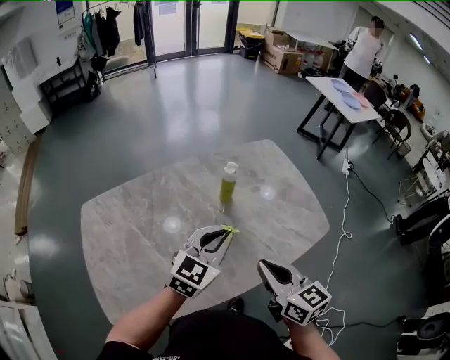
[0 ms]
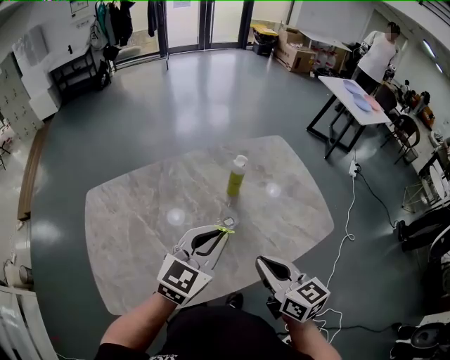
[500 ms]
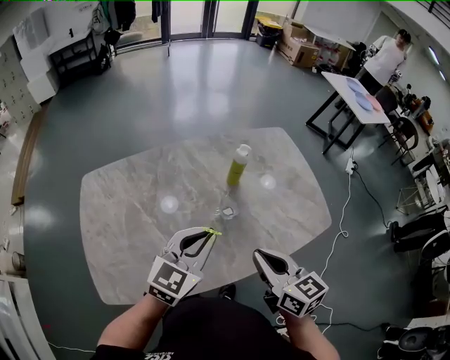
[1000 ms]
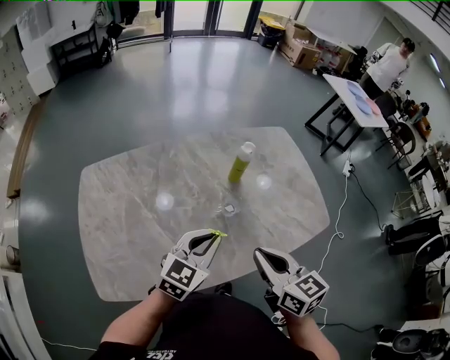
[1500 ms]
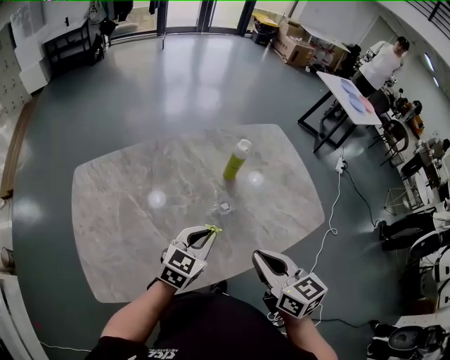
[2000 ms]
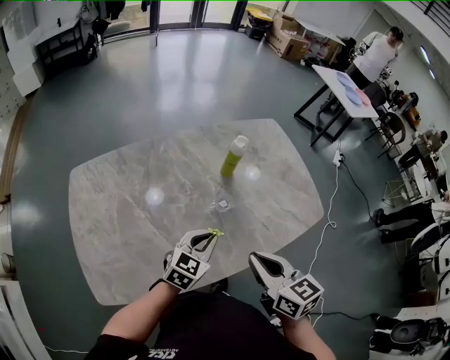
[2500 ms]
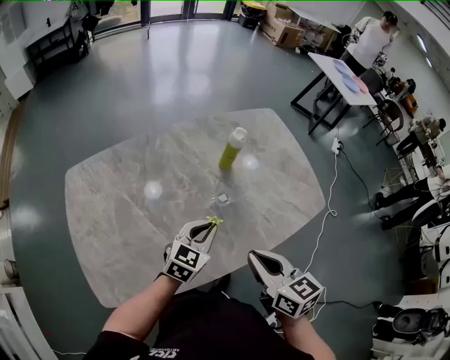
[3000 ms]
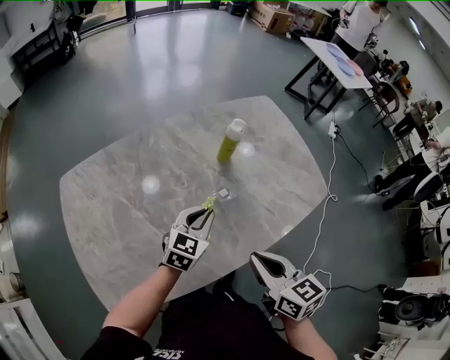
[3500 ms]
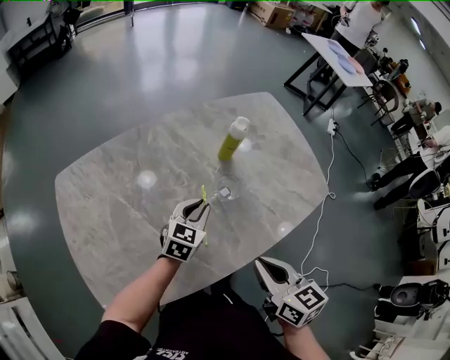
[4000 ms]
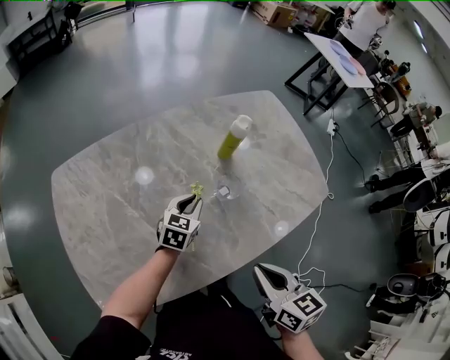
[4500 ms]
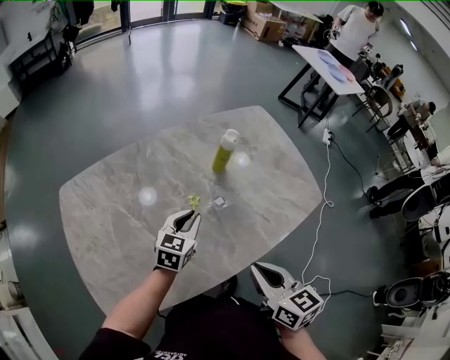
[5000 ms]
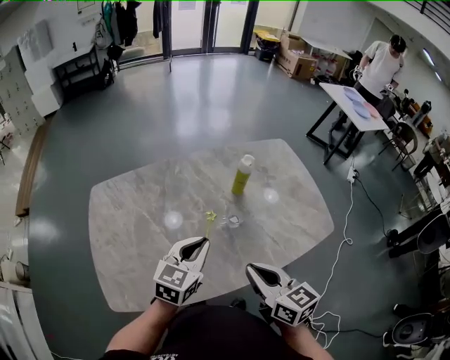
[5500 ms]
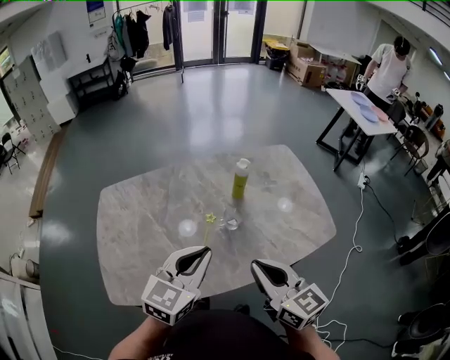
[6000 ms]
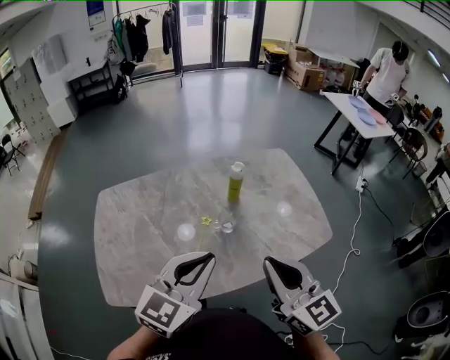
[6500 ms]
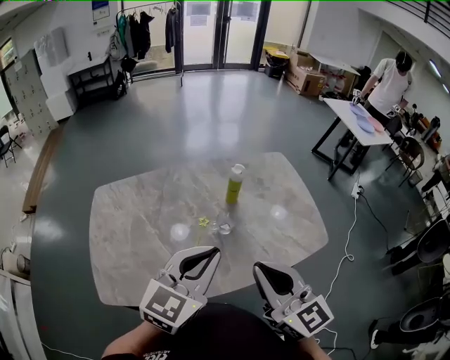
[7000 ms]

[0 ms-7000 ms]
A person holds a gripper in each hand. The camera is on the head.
0 ms to 2000 ms: The left gripper goes roughly 10 cm downward and to the left.
2000 ms to 3500 ms: The left gripper goes approximately 10 cm downward and forward. The right gripper shifts by roughly 5 cm.
3500 ms to 5000 ms: The left gripper moves some 10 cm downward and comes back.
5000 ms to 7000 ms: The left gripper goes about 30 cm upward and backward, and turns by about 20 degrees; the right gripper heads upward, covering roughly 15 cm, and rotates approximately 40 degrees.

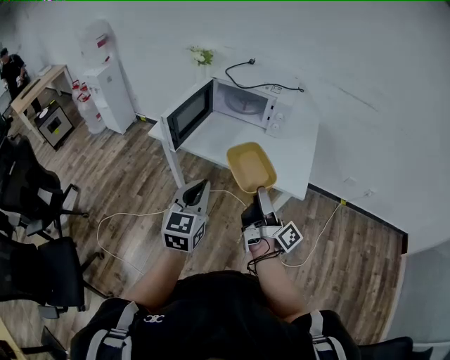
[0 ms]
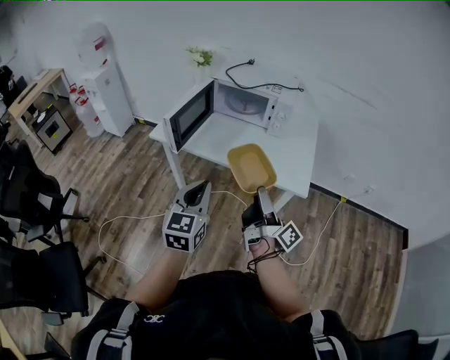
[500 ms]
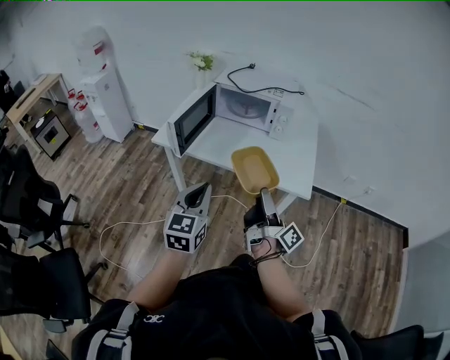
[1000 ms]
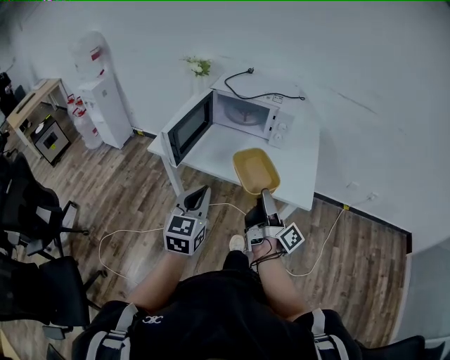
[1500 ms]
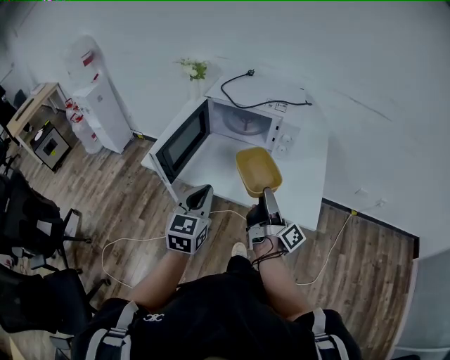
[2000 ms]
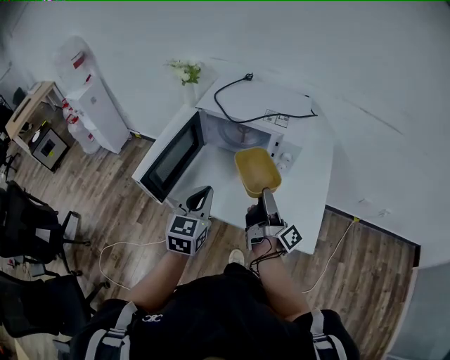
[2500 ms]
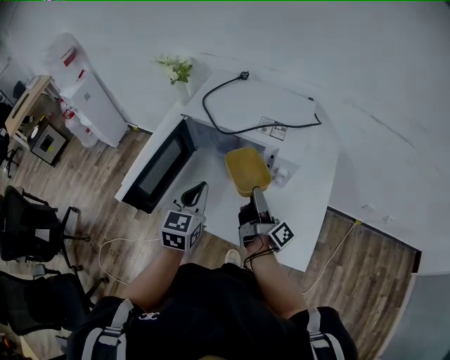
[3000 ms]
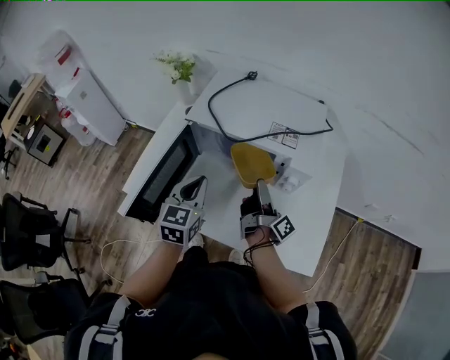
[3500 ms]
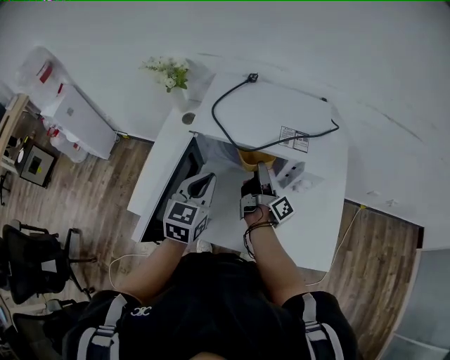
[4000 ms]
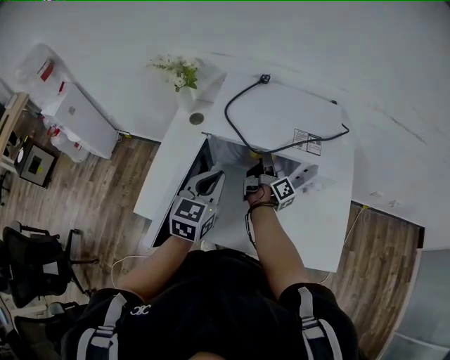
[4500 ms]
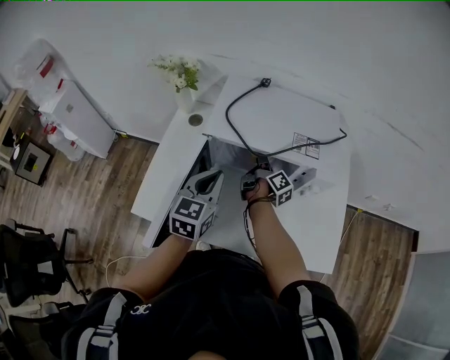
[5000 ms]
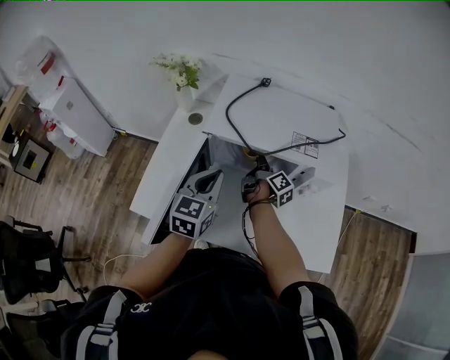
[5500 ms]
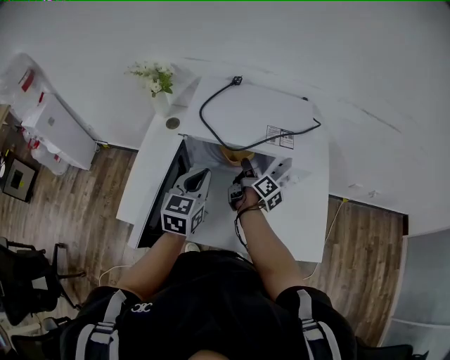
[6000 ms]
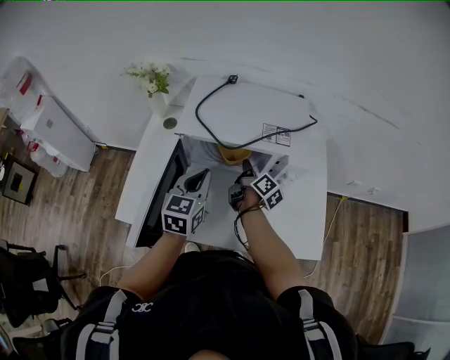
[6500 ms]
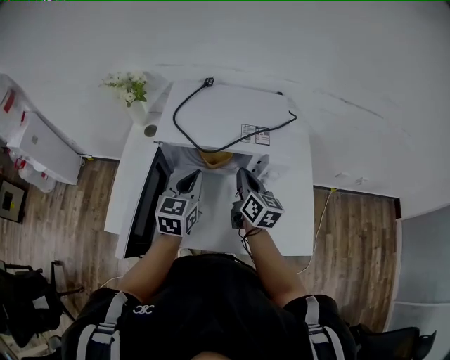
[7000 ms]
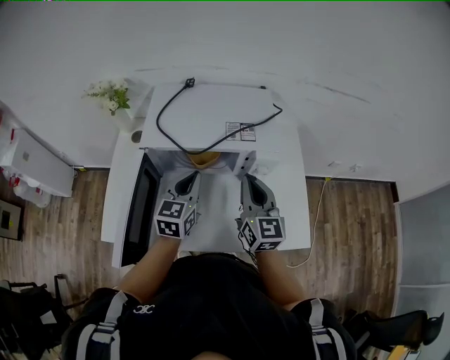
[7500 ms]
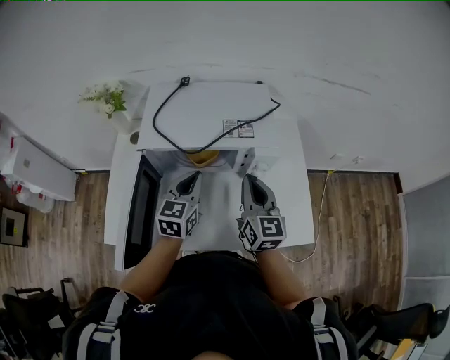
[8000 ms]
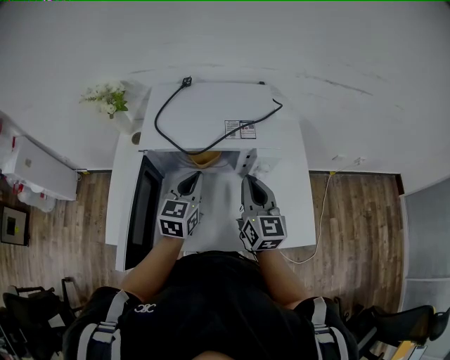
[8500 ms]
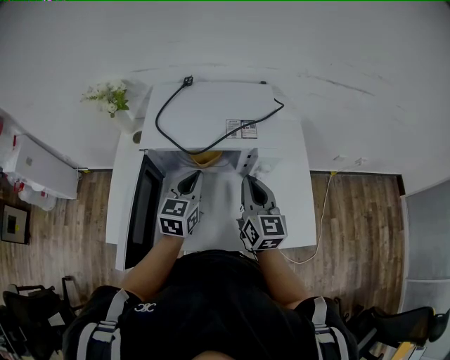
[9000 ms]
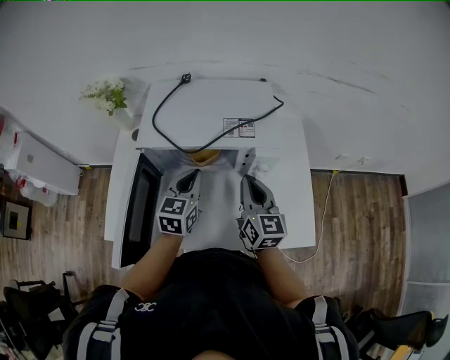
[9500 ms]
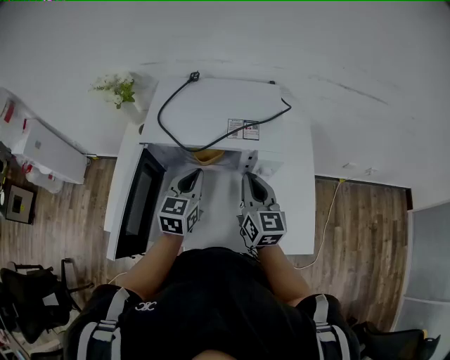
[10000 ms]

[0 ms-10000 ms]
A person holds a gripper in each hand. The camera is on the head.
0 ms to 2000 ms: Both grippers travel together forward, some 20 cm.
2000 ms to 4000 ms: The two grippers go some 35 cm forward.
4000 ms to 6000 ms: The right gripper turns by some 30 degrees, and closes up.
6000 ms to 8000 ms: The left gripper goes roughly 10 cm to the right; the right gripper goes about 20 cm upward, to the right and backward, and rotates around the line of its fingers by approximately 60 degrees, counterclockwise from behind.
8000 ms to 10000 ms: The grippers move only a little.

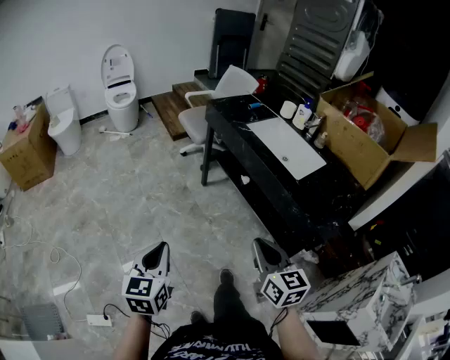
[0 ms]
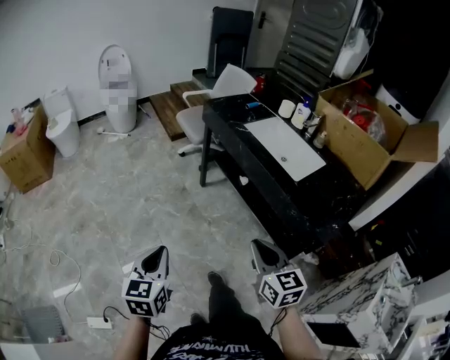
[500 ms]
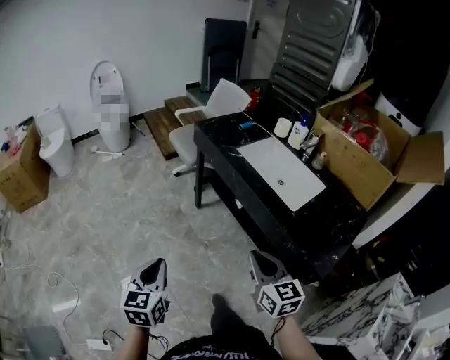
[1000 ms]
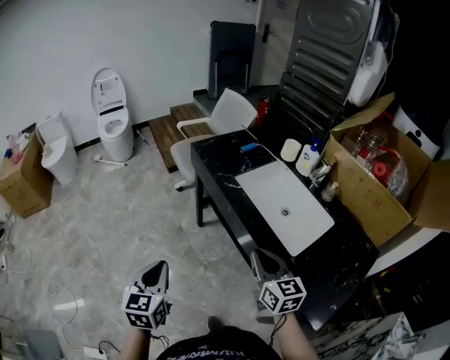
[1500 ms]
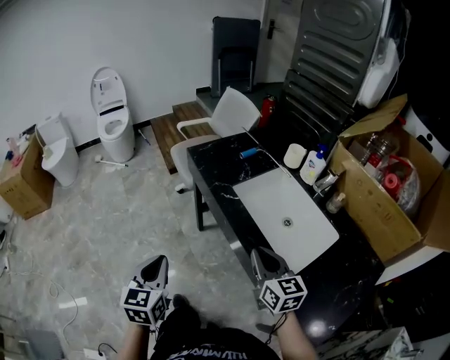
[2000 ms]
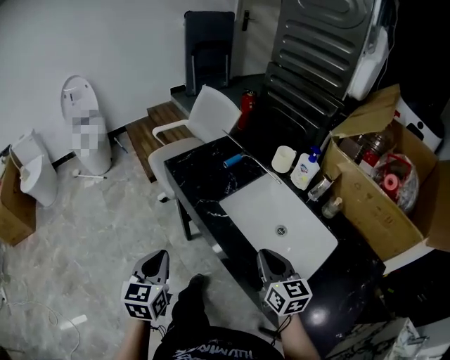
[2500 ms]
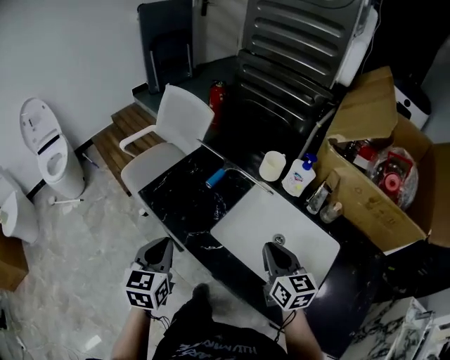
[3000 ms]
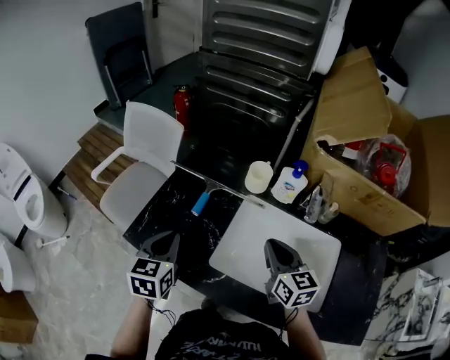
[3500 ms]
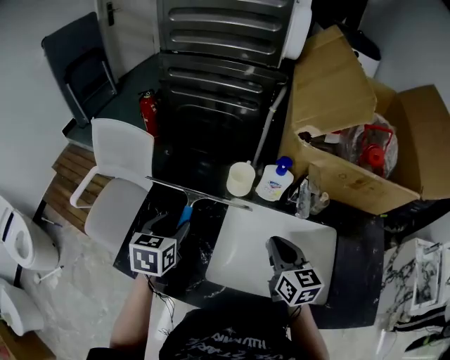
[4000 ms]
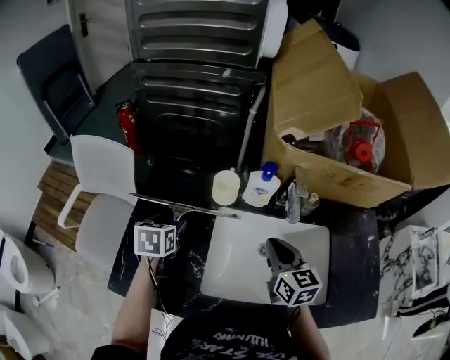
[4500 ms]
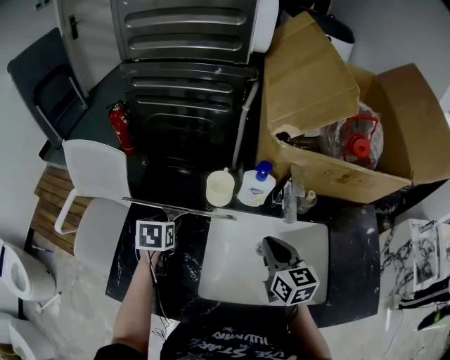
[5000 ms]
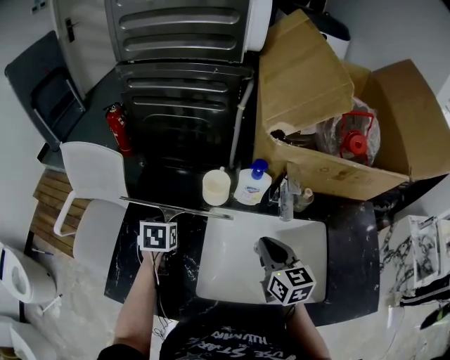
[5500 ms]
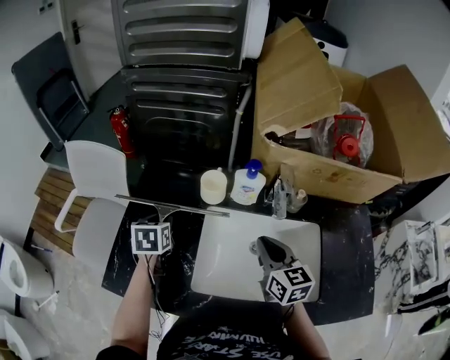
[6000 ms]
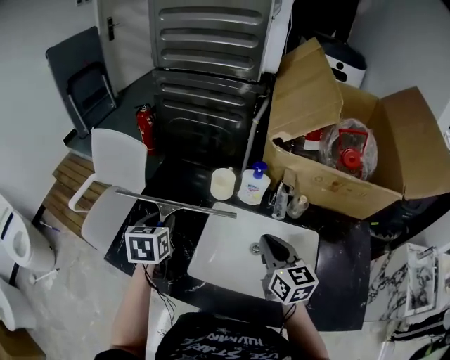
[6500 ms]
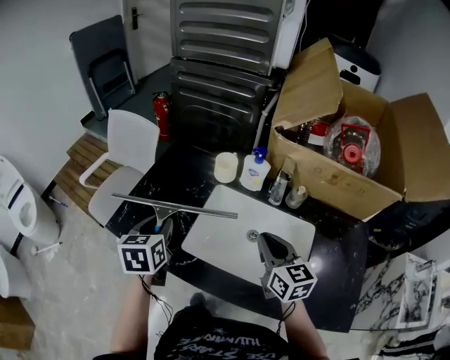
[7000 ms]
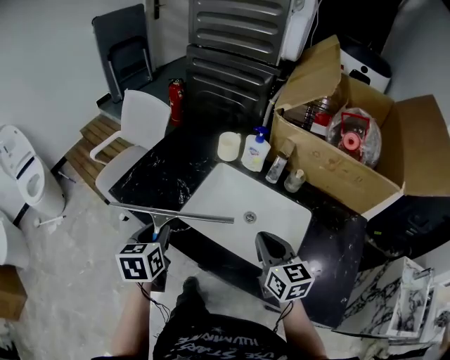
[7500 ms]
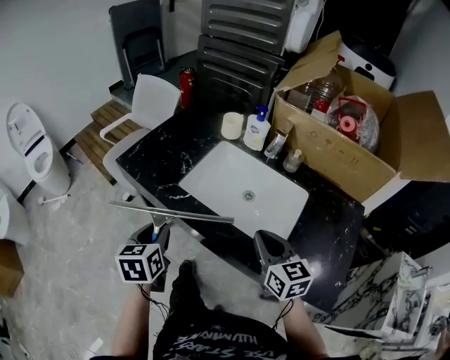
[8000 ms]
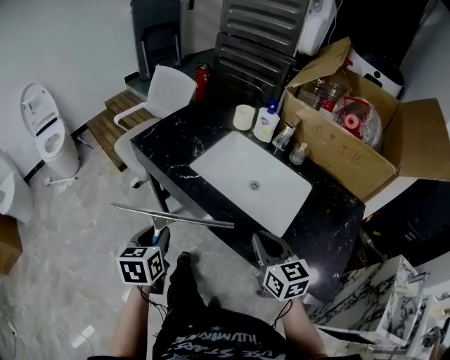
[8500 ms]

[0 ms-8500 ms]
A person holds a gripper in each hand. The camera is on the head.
0 ms to 2000 ms: The pair of grippers is taken forward and to the right, about 40 cm.
2000 ms to 4000 ms: The left gripper ends up about 60 cm from where it was, changes its angle by about 50 degrees, and opens, while the right gripper moves roughly 35 cm, and changes its angle by about 50 degrees.
4000 ms to 6500 ms: The left gripper travels downward and back again, about 10 cm each way; the right gripper changes place by roughly 5 cm.
6500 ms to 8500 ms: The two grippers go some 40 cm backward. The right gripper changes its angle by some 30 degrees. Meanwhile the left gripper rotates about 20 degrees.

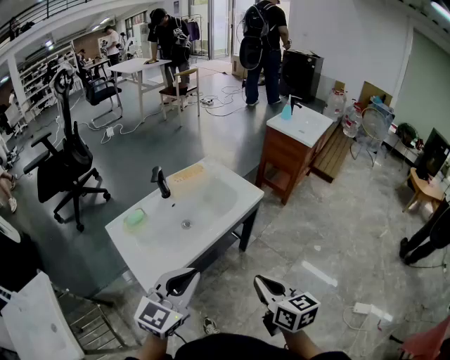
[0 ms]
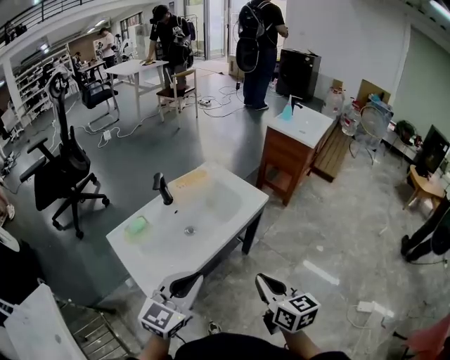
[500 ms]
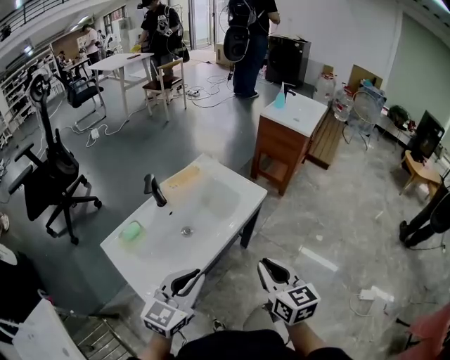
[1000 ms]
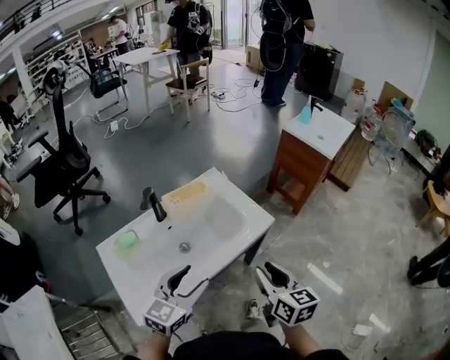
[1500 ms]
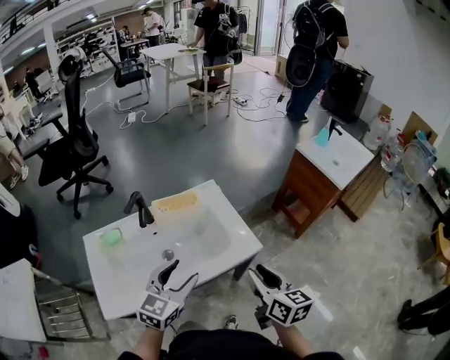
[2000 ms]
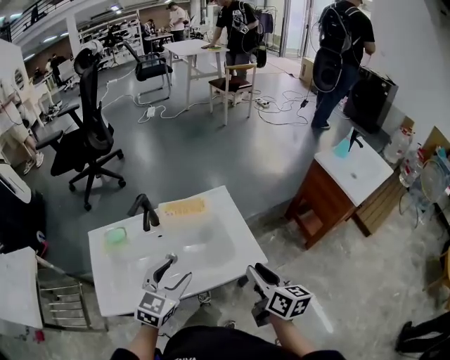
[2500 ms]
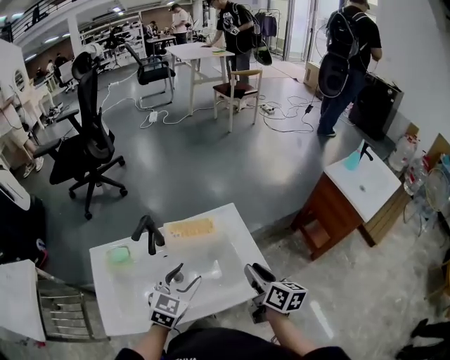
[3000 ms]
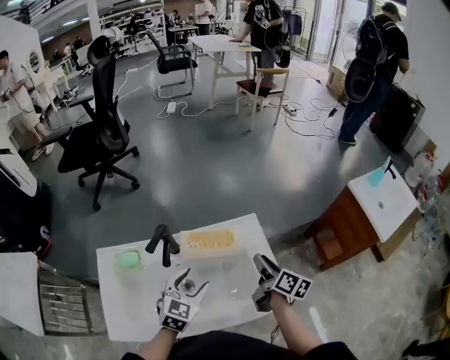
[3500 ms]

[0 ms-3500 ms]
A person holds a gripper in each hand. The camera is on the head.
0 ms to 2000 ms: The two grippers go roughly 30 cm forward. The left gripper rotates some 20 degrees, and opens up. Meanwhile the right gripper opens.
2000 ms to 3500 ms: The right gripper heads forward, covering approximately 30 cm, and turns by roughly 30 degrees. Meanwhile the left gripper moves forward and downward, some 20 cm, and changes its angle by some 20 degrees.
